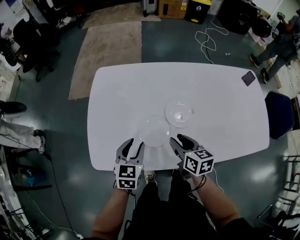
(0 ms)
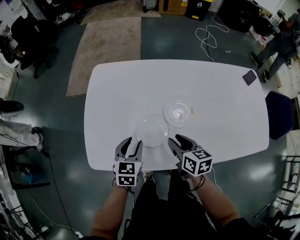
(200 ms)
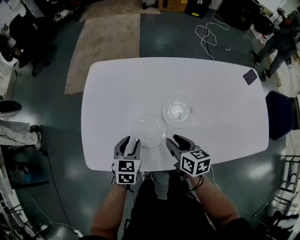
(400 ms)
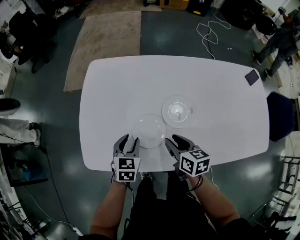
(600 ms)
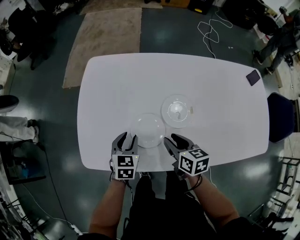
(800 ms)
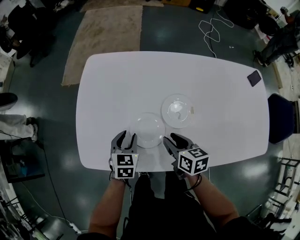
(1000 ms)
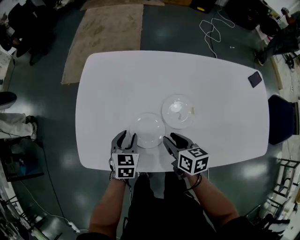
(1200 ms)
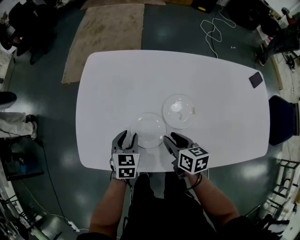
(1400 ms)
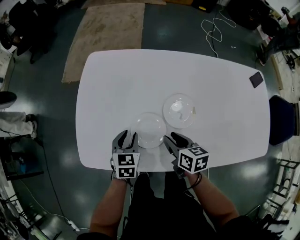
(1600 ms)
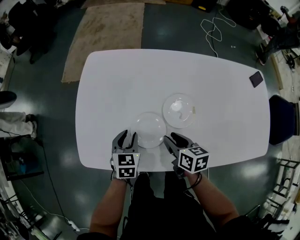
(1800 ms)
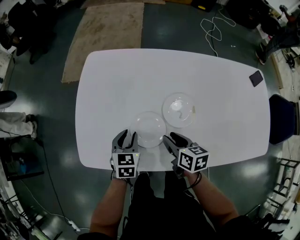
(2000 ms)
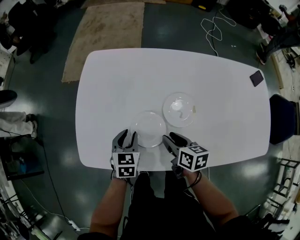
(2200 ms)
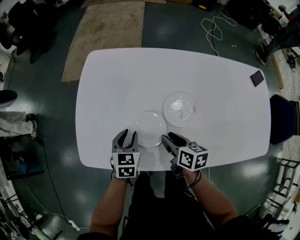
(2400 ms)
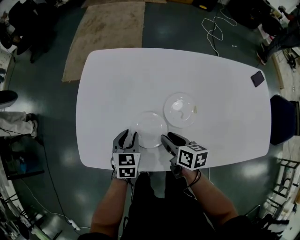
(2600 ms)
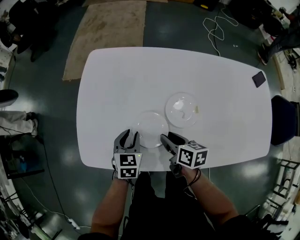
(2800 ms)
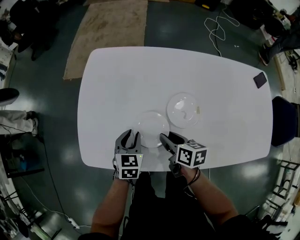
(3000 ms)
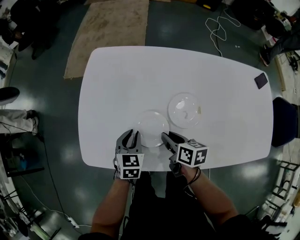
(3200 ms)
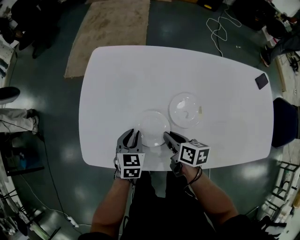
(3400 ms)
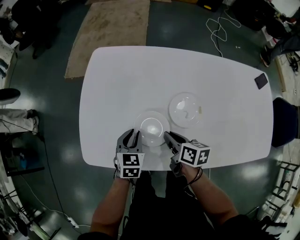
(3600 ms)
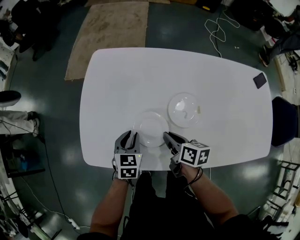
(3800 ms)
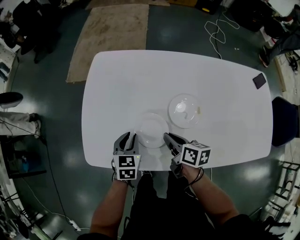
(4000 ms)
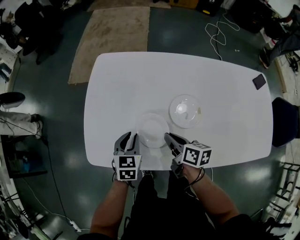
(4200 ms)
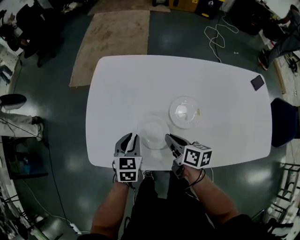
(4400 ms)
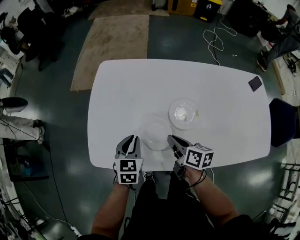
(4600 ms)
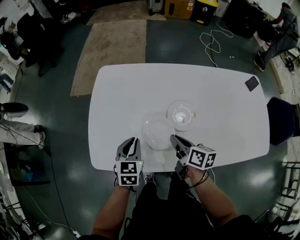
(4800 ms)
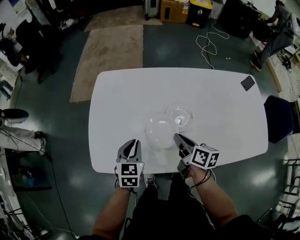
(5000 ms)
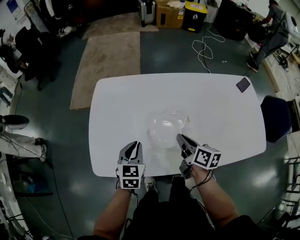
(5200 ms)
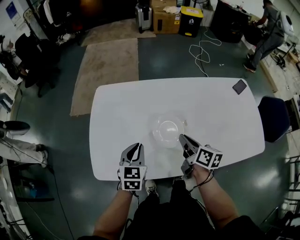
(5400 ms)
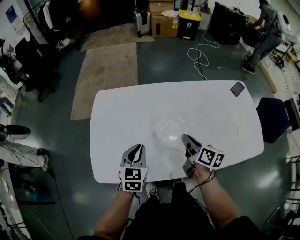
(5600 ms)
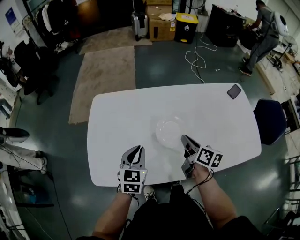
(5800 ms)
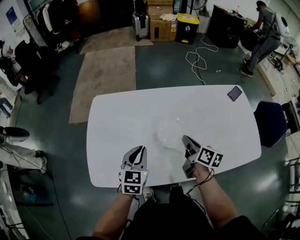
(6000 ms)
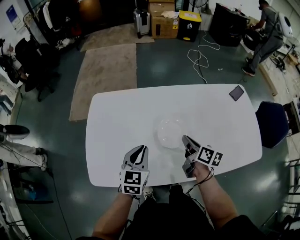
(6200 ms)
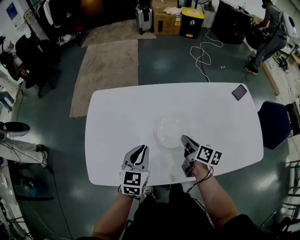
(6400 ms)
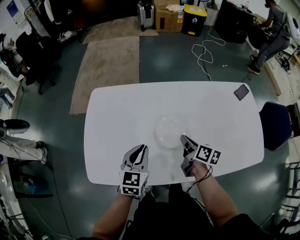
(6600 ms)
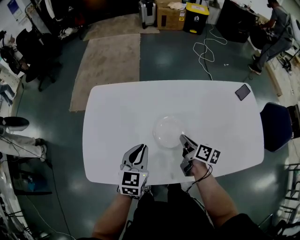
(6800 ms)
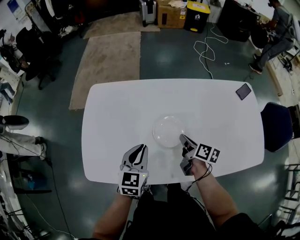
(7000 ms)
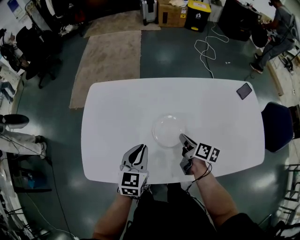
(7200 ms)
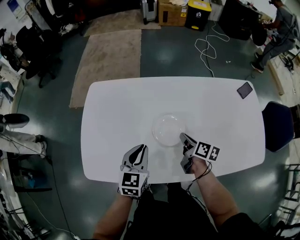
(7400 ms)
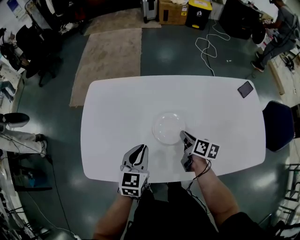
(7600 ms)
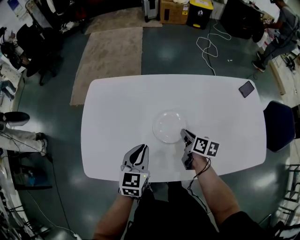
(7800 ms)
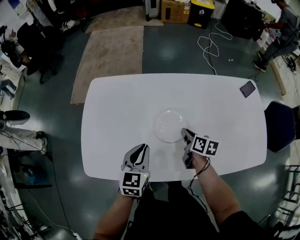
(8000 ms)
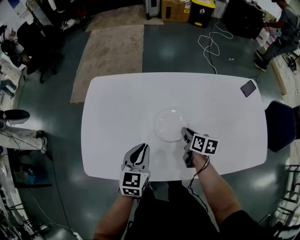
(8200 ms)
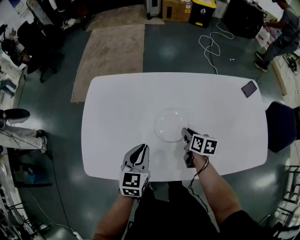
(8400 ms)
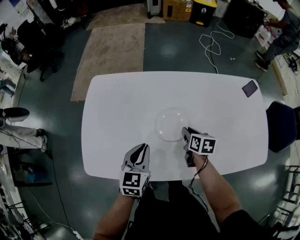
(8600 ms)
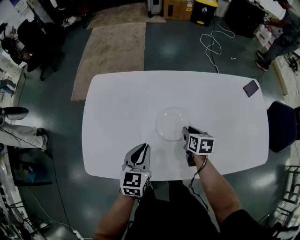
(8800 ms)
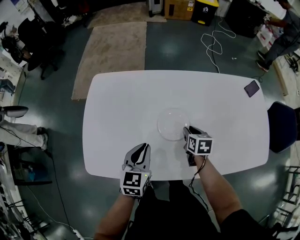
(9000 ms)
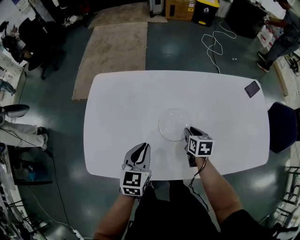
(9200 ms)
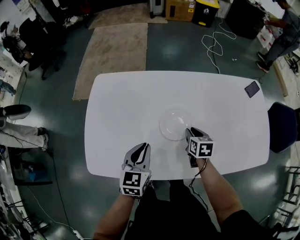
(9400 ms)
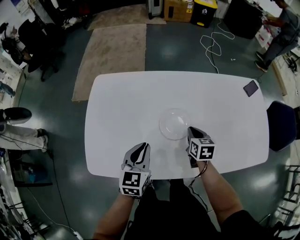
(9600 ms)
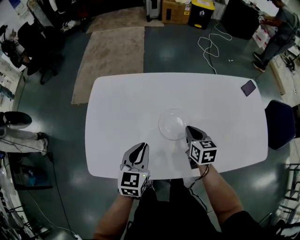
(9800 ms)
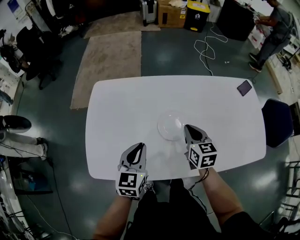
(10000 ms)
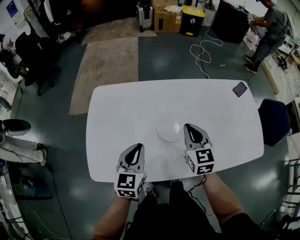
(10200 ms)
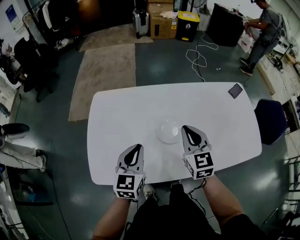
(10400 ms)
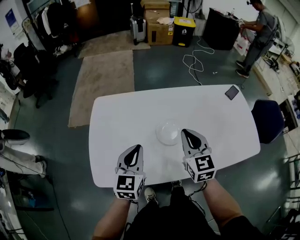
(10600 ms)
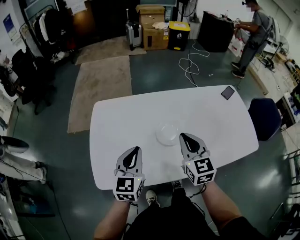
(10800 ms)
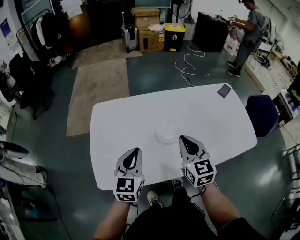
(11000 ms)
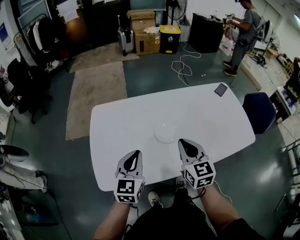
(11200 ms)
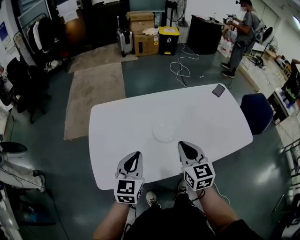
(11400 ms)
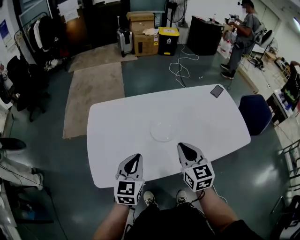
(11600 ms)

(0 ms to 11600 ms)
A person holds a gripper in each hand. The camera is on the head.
0 ms - 1400 ms: The right gripper goes approximately 5 cm downward, while the left gripper heads downward, covering roughly 10 cm.
1400 ms - 2800 ms: The grippers move only a little.
2800 ms - 4400 ms: The right gripper closes.
4400 ms - 5800 ms: The left gripper shifts approximately 15 cm upward and to the right; the right gripper goes roughly 20 cm to the right and upward, and swivels approximately 20 degrees.
5800 ms - 7200 ms: The left gripper moves roughly 5 cm. Meanwhile the right gripper is displaced downward by roughly 10 cm.
7200 ms - 8800 ms: The right gripper ends up some 5 cm from where it was, and turns by roughly 30 degrees.
8800 ms - 10200 ms: The left gripper shifts about 5 cm upward; the right gripper moves upward, some 20 cm, changes its angle by approximately 40 degrees, and closes its fingers.
10200 ms - 11600 ms: The left gripper travels backward by about 10 cm, while the right gripper travels backward and upward by roughly 15 cm.

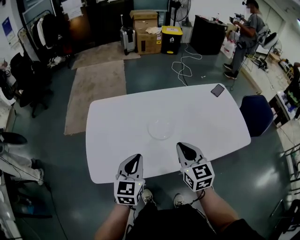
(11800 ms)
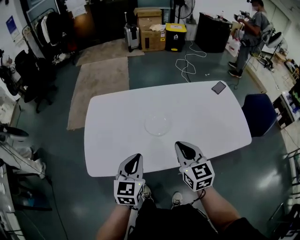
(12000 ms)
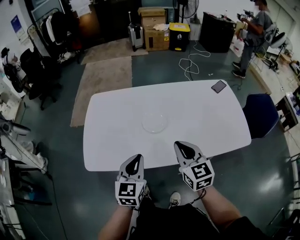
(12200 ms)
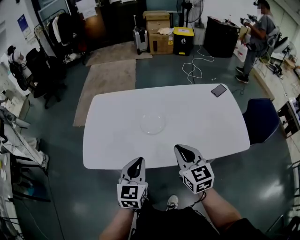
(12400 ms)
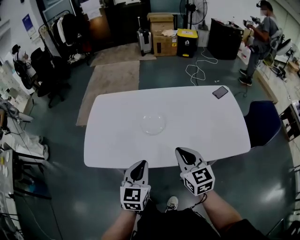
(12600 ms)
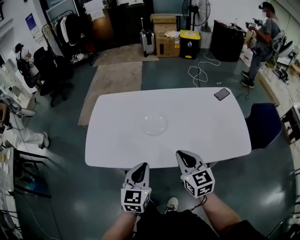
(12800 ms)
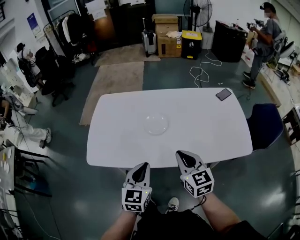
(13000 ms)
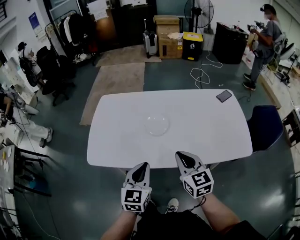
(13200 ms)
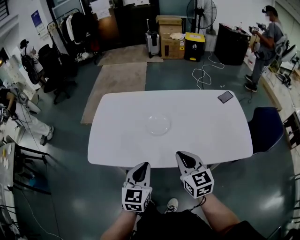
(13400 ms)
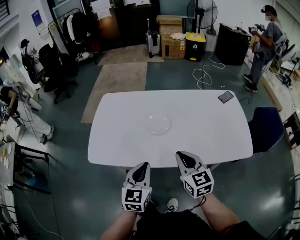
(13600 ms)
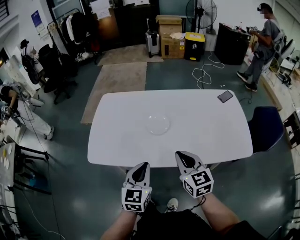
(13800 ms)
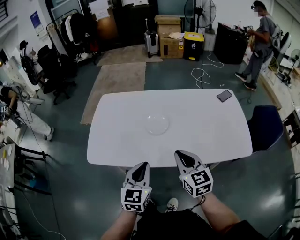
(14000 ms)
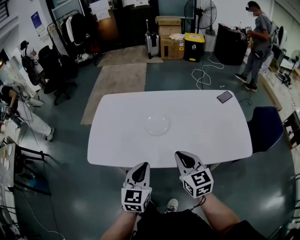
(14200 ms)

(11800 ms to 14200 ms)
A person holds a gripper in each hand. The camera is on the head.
11800 ms - 13000 ms: The two grippers go roughly 15 cm to the right and backward.
13000 ms - 14200 ms: Both grippers stay put.

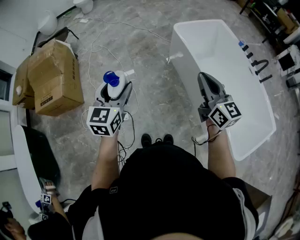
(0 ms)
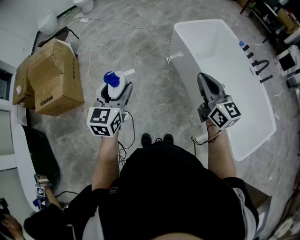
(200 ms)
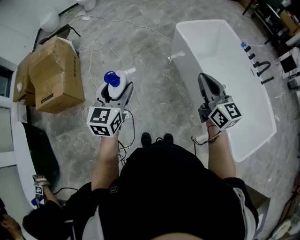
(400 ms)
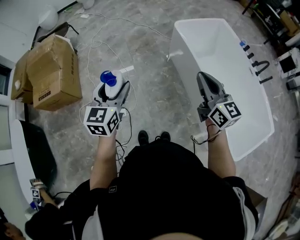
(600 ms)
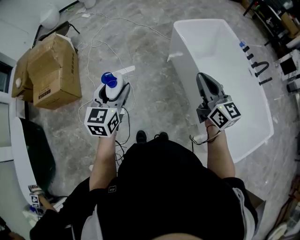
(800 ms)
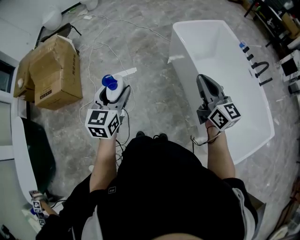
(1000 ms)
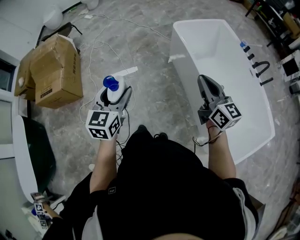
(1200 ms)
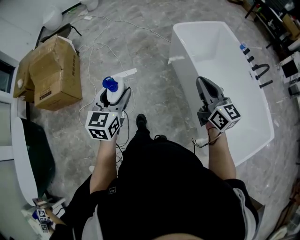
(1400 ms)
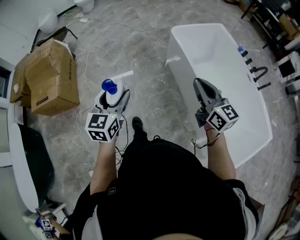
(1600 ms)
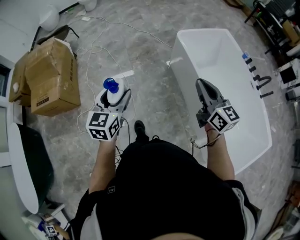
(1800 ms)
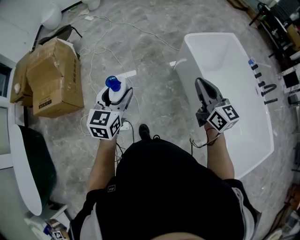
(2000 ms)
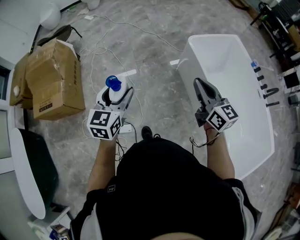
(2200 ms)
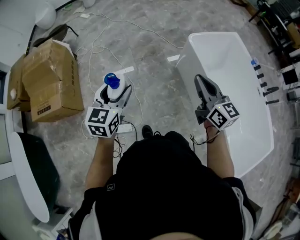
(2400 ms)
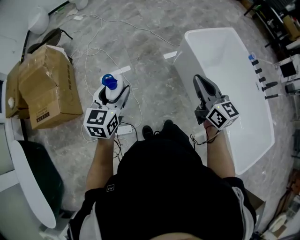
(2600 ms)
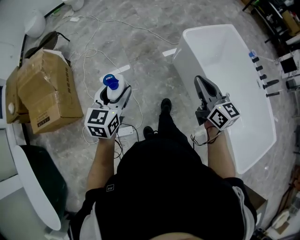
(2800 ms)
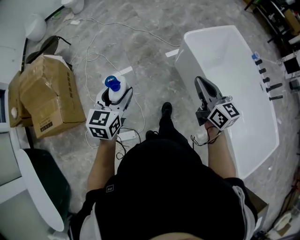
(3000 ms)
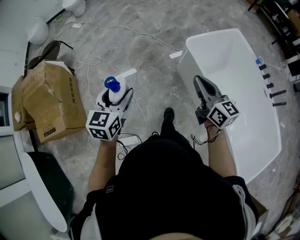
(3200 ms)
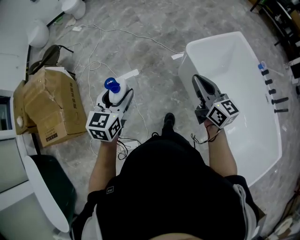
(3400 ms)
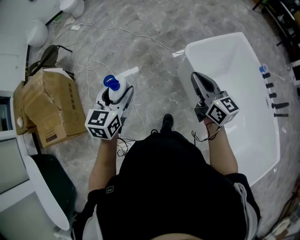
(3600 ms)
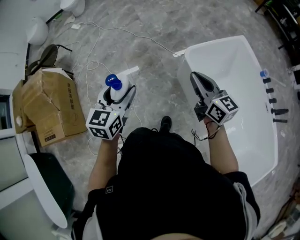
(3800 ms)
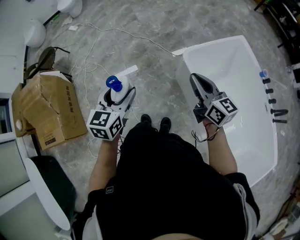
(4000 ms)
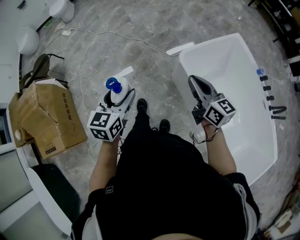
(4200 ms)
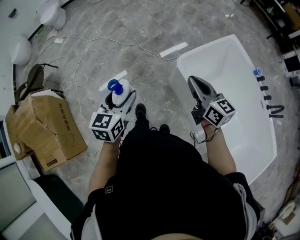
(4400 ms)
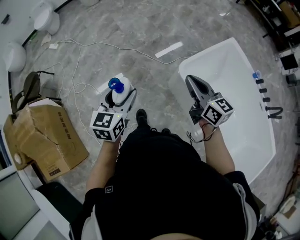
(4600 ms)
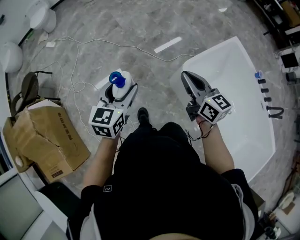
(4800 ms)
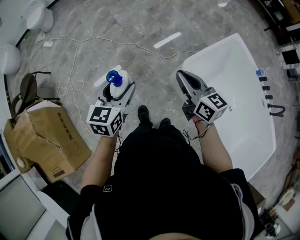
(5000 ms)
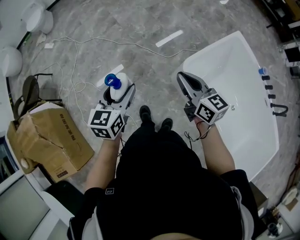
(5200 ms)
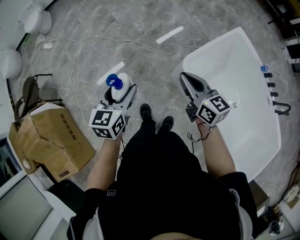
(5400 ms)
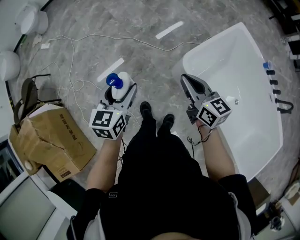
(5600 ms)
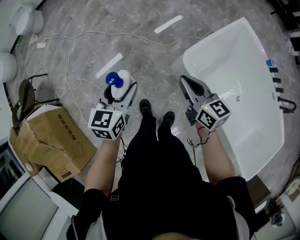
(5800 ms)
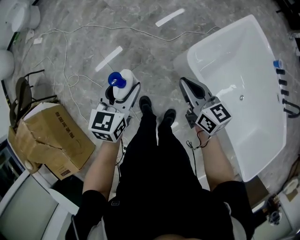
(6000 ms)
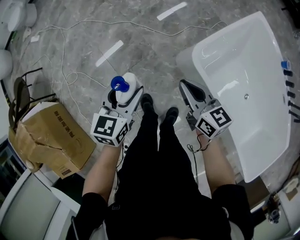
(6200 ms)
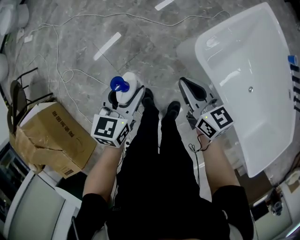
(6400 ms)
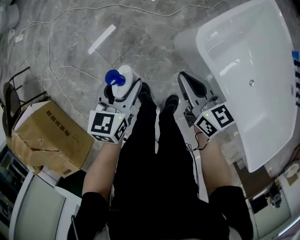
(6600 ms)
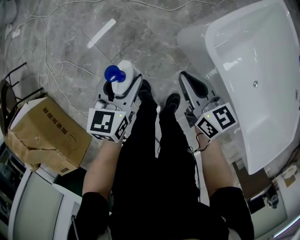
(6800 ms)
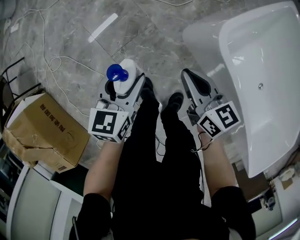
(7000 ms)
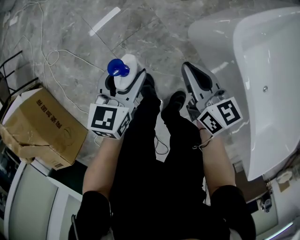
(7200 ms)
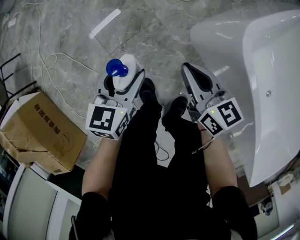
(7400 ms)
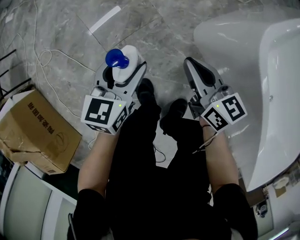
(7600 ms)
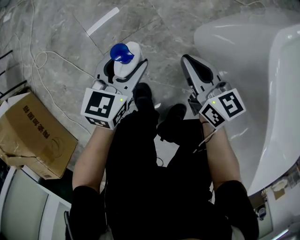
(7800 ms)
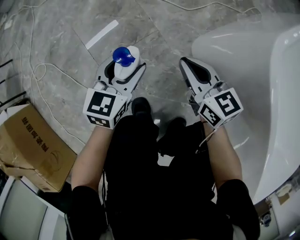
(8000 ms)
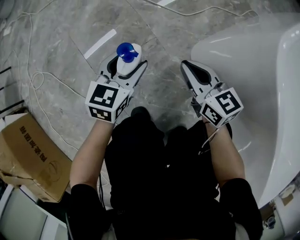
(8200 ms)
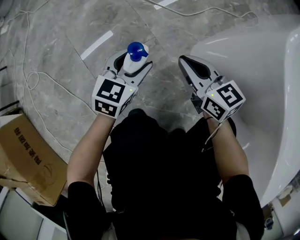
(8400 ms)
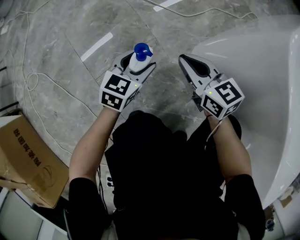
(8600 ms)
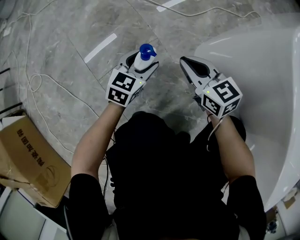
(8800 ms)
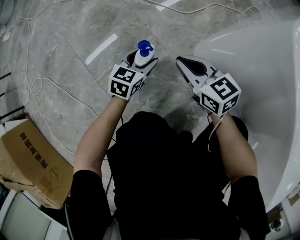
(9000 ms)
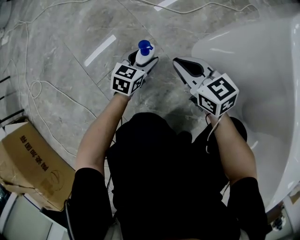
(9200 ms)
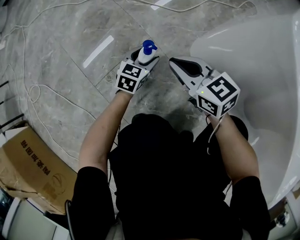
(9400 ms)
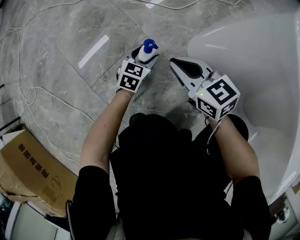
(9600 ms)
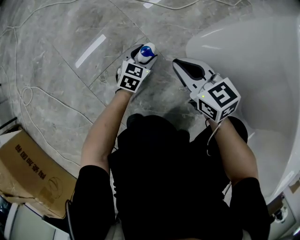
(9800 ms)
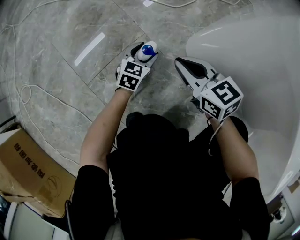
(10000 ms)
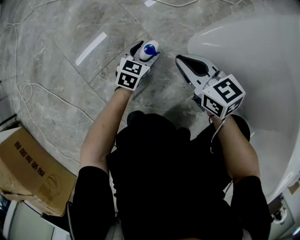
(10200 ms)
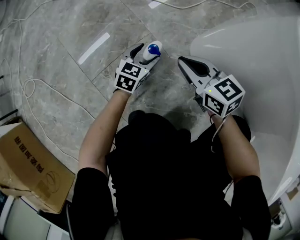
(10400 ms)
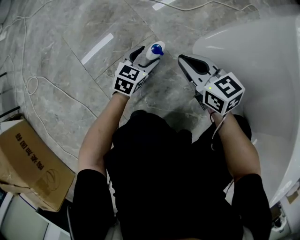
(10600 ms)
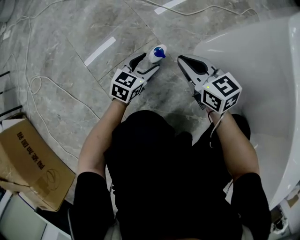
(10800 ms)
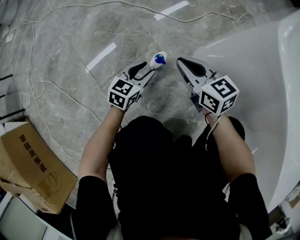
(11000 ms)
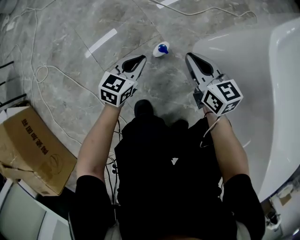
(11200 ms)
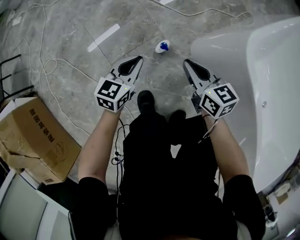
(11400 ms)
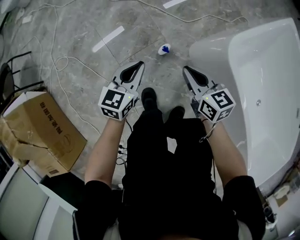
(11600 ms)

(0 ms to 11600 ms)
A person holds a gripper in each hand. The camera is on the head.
0 ms - 1400 ms: The grippers both shift to the right by approximately 5 cm.
1400 ms - 2800 ms: Both grippers move forward and to the left, about 30 cm.
2800 ms - 4400 ms: Both grippers are carried forward, approximately 40 cm.
4400 ms - 5800 ms: The two grippers go about 20 cm forward and downward.
5800 ms - 7200 ms: The grippers both shift downward by approximately 35 cm.
7200 ms - 8800 ms: The two grippers go roughly 30 cm downward. The right gripper rotates about 20 degrees.
8800 ms - 10200 ms: The left gripper is displaced downward by some 10 cm.
10200 ms - 11600 ms: Both grippers travel together upward, some 40 cm. The left gripper closes up.
